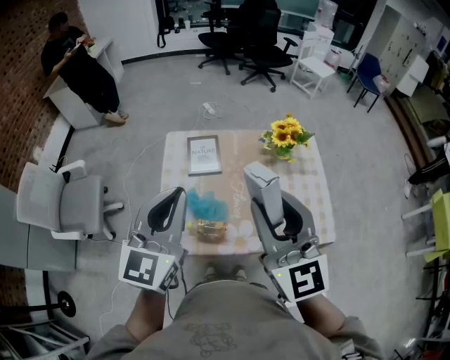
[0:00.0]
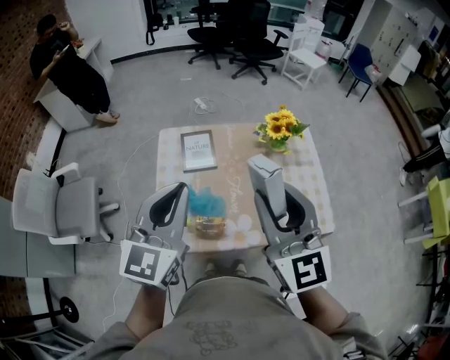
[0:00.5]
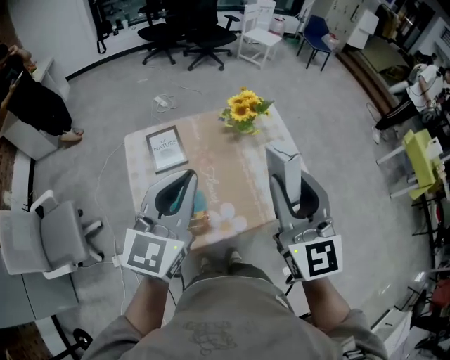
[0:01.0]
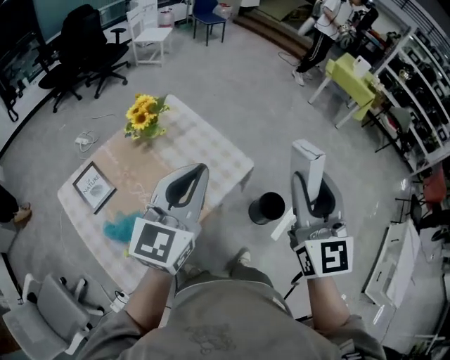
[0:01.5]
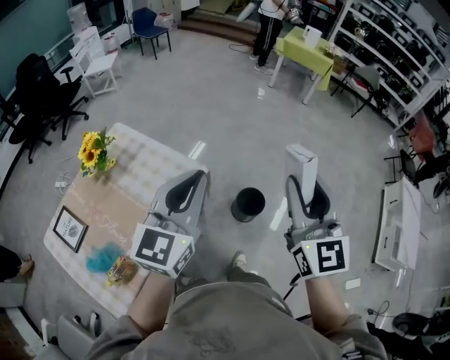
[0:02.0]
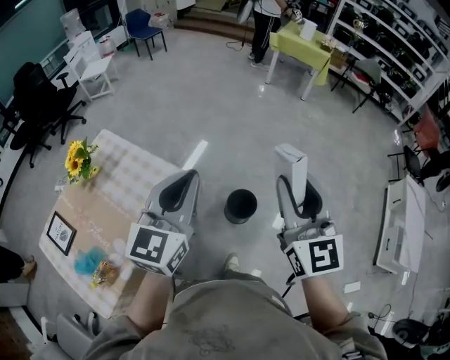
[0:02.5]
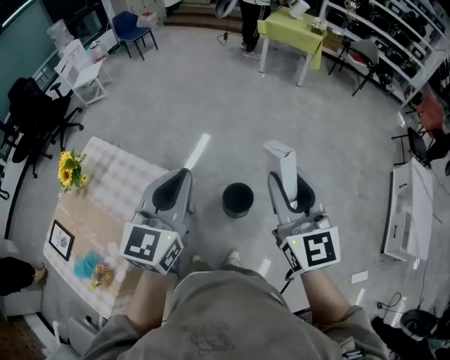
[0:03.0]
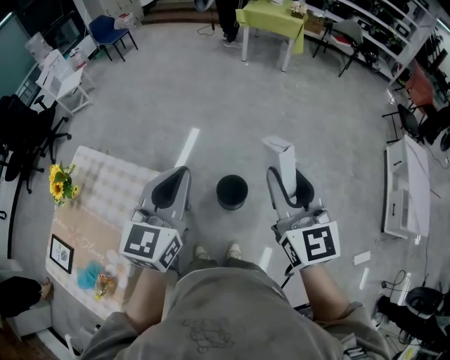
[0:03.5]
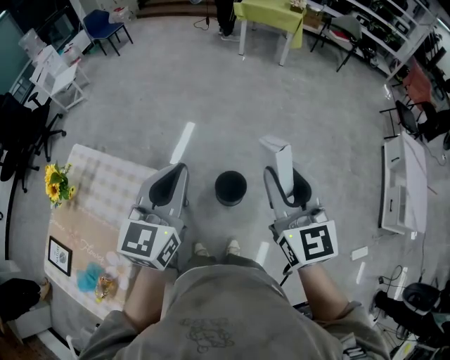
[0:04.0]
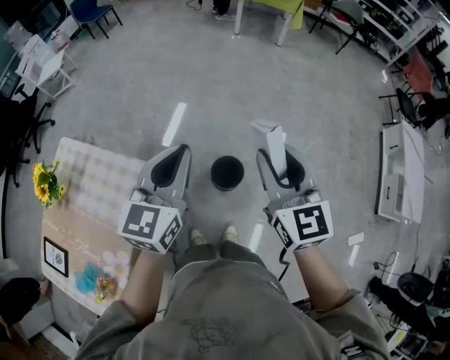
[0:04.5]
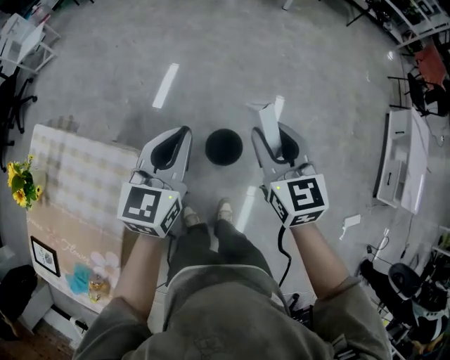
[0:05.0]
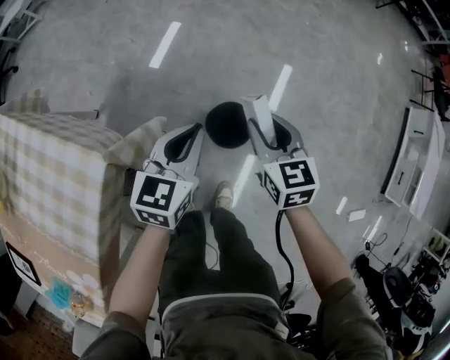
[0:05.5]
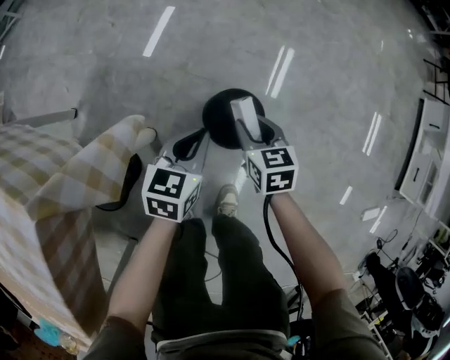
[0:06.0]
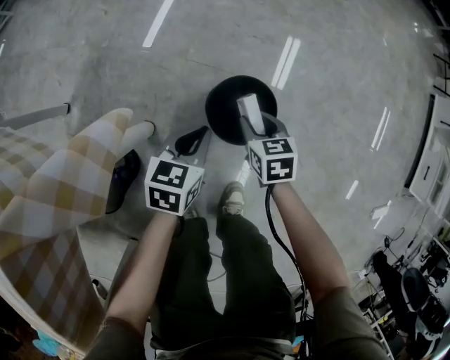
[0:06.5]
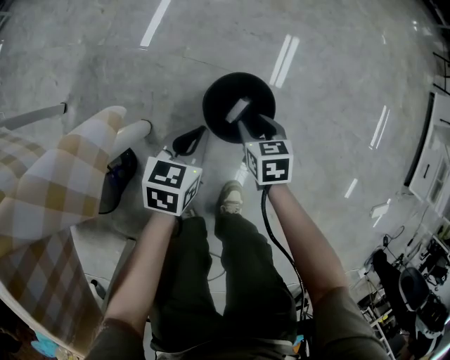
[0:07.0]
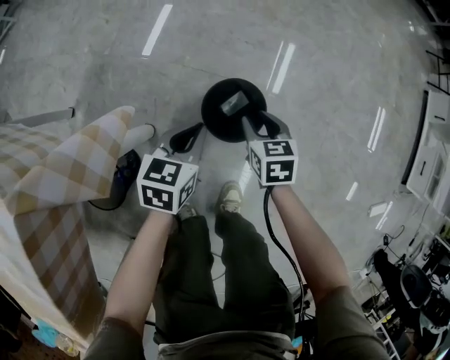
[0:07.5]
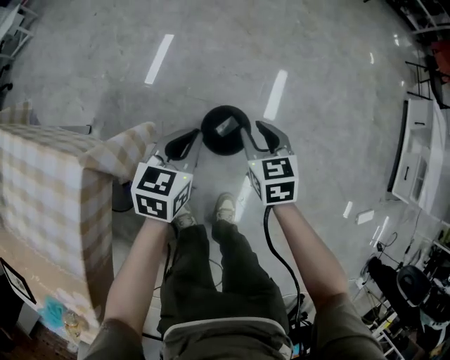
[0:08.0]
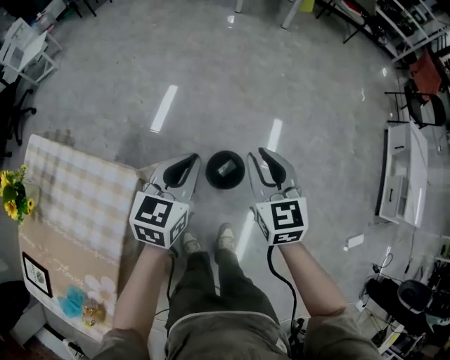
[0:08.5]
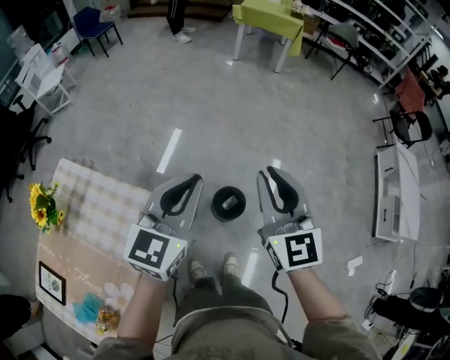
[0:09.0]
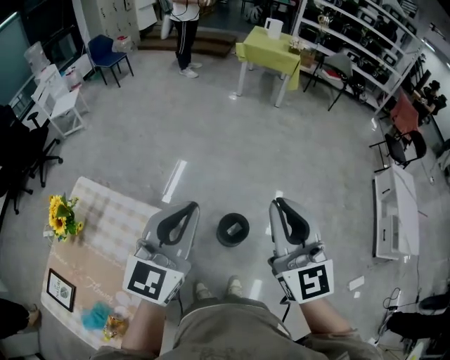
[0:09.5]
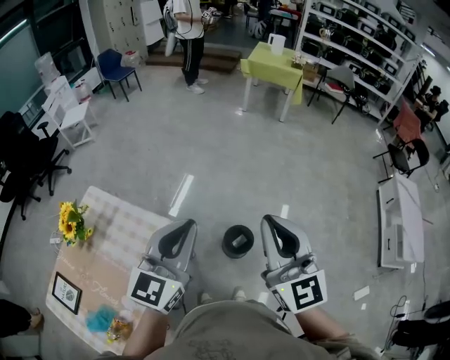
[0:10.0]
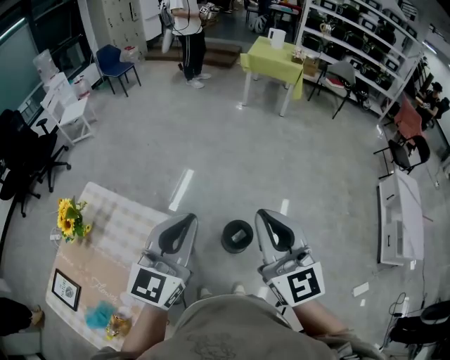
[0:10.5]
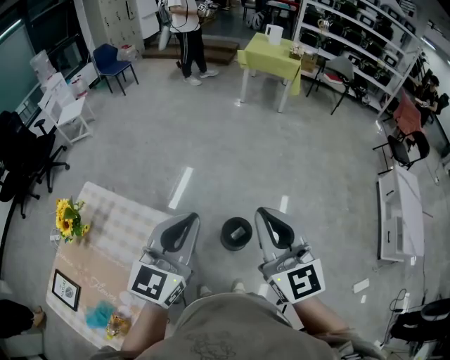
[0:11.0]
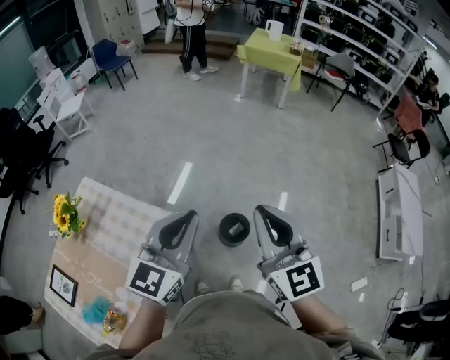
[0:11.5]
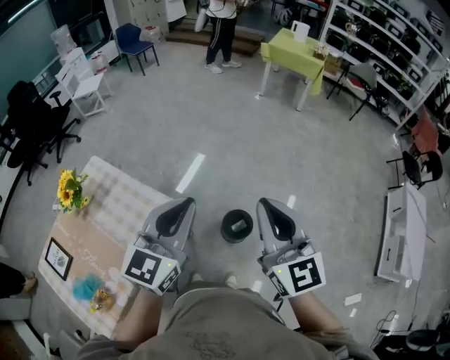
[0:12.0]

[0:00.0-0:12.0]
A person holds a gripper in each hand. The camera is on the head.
0:00.0 to 0:02.0: The two grippers travel together, roughly 50 cm. The right gripper swivels about 70 degrees; the left gripper rotates about 70 degrees.
0:02.0 to 0:04.0: The left gripper is displaced to the right and forward by some 20 cm. The right gripper goes approximately 20 cm to the right, forward and downward.
0:04.0 to 0:06.0: Both grippers move downward, roughly 70 cm. The left gripper angles its fingers downward, by approximately 30 degrees. The right gripper tilts its fingers some 40 degrees downward.
0:06.0 to 0:08.0: Both grippers move upward, some 15 cm.
0:08.0 to 0:10.0: Both grippers move upward, approximately 60 cm. The right gripper tilts its fingers about 50 degrees upward, and closes its fingers. The left gripper tips its fingers upward by approximately 40 degrees.
0:10.0 to 0:12.0: The right gripper changes place by some 5 cm.

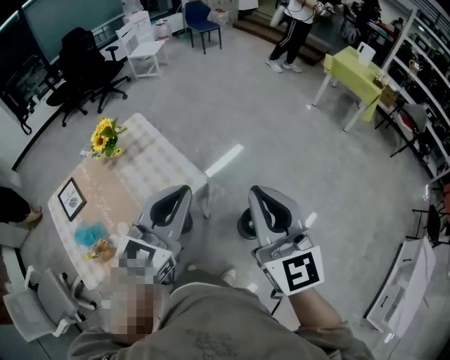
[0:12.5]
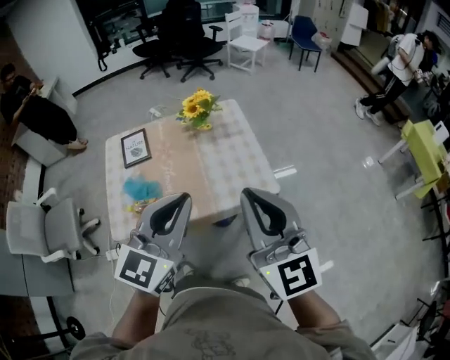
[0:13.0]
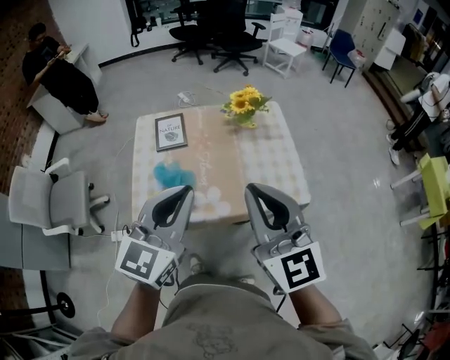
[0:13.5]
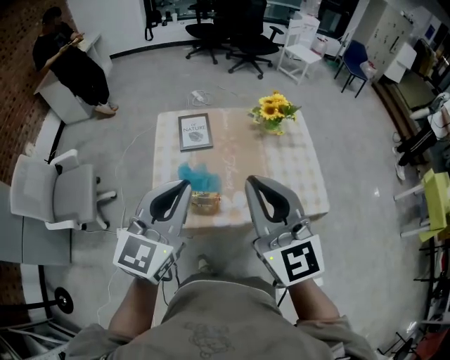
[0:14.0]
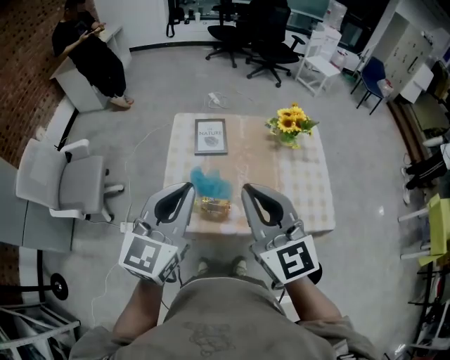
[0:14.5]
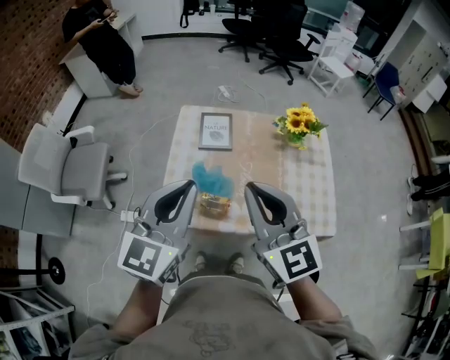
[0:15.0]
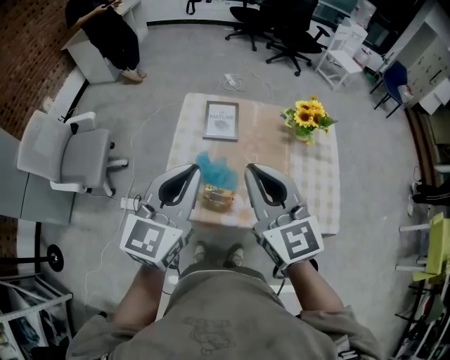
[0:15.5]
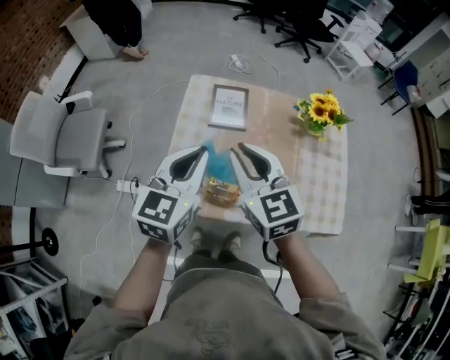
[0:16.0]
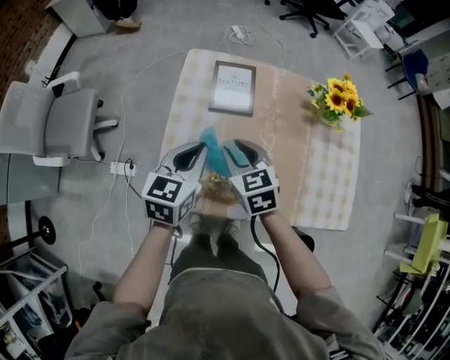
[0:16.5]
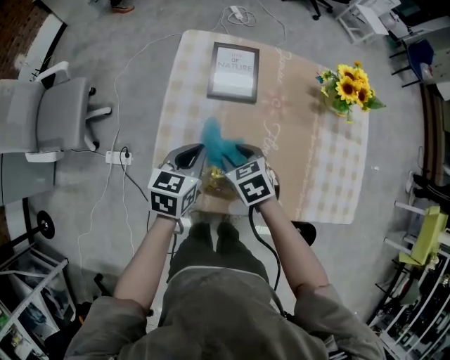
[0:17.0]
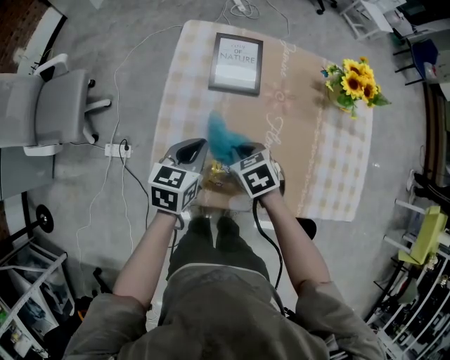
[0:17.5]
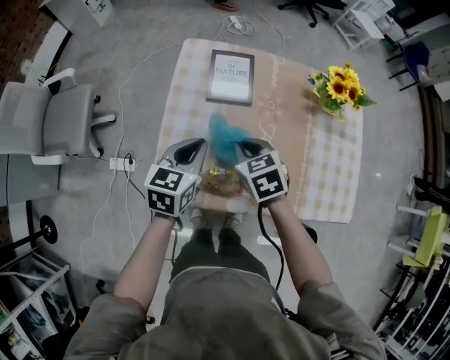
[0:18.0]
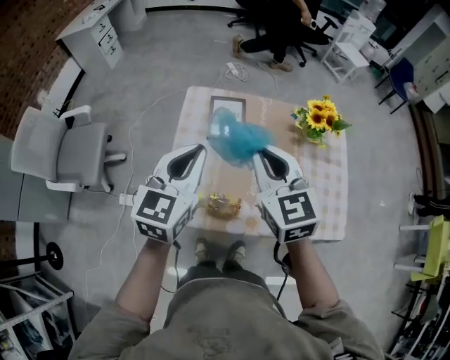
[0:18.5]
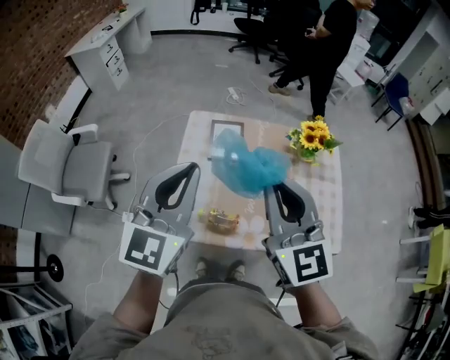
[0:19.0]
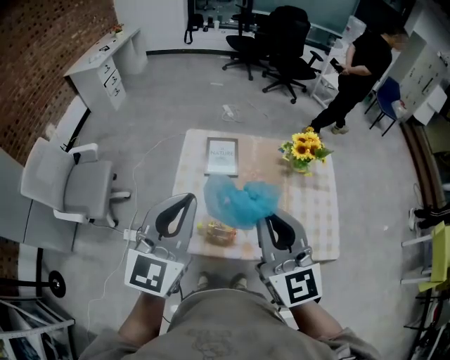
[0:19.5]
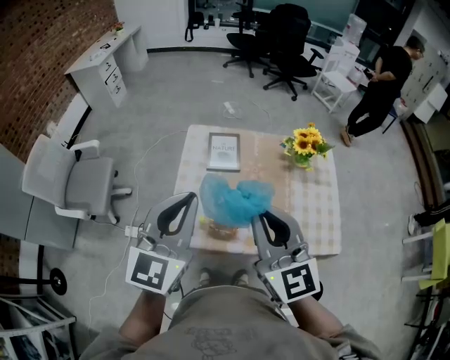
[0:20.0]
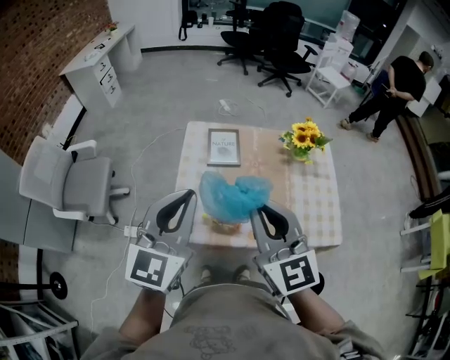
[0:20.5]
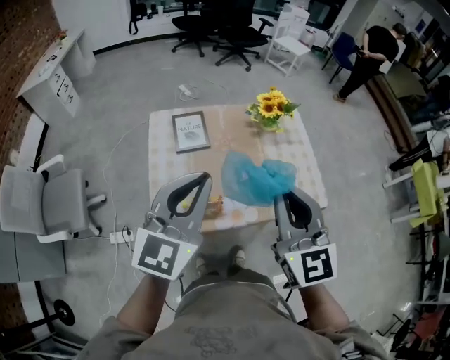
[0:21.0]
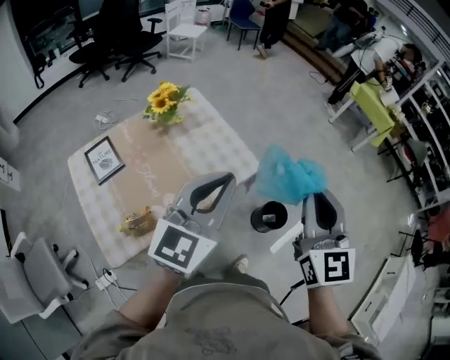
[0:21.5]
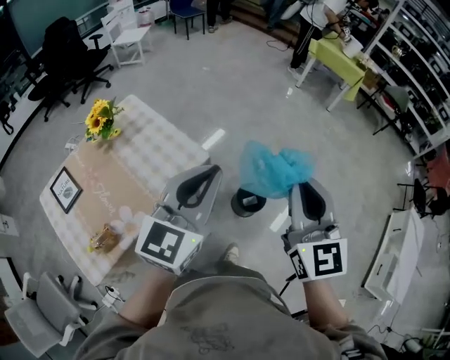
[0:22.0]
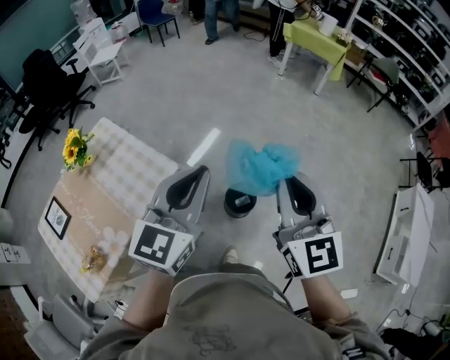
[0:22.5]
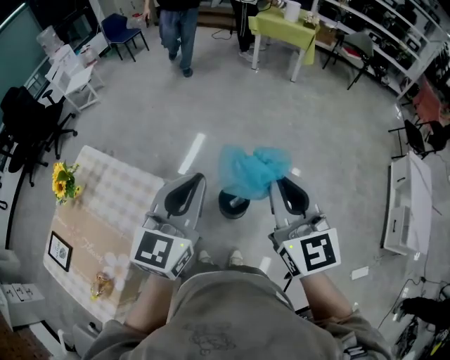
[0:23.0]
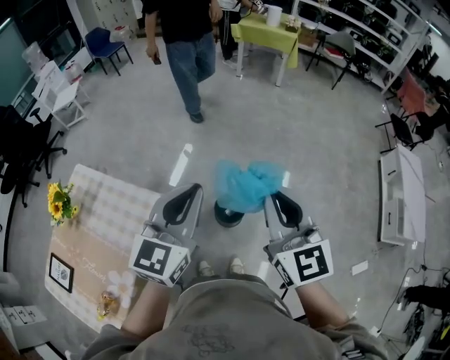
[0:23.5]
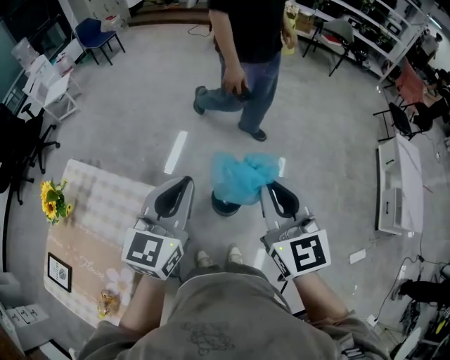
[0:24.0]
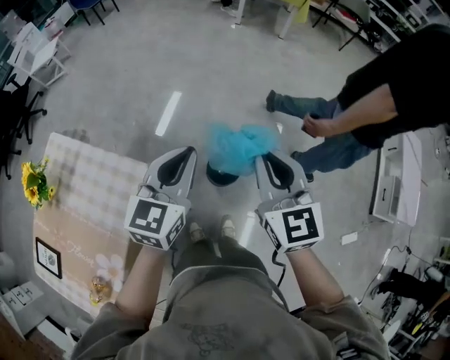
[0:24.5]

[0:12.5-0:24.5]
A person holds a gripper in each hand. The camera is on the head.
0:12.5 to 0:14.5: The two grippers travel together, approximately 60 cm. The right gripper swivels roughly 50 degrees. The left gripper turns by about 50 degrees.
0:14.5 to 0:16.5: The grippers both shift downward and forward by roughly 35 cm. The right gripper points its fingers about 40 degrees further downward, and opens. Meanwhile the left gripper swivels approximately 30 degrees.
0:16.5 to 0:18.5: The grippers both shift upward by approximately 20 cm. The right gripper rotates approximately 20 degrees, and closes.
0:18.5 to 0:20.5: The two grippers go about 15 cm backward and upward.
0:20.5 to 0:22.5: The two grippers travel together, approximately 70 cm. The right gripper rotates approximately 70 degrees, while the left gripper changes its angle by roughly 70 degrees.
0:22.5 to 0:24.5: The left gripper travels forward and downward by some 20 cm. Meanwhile the right gripper heads downward and forward, covering approximately 15 cm.

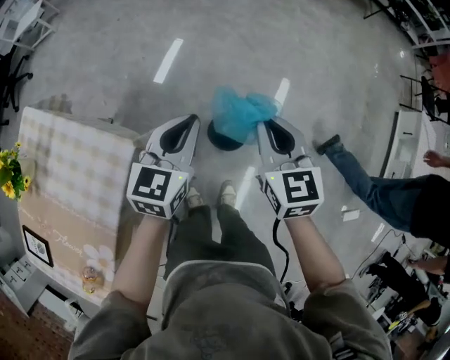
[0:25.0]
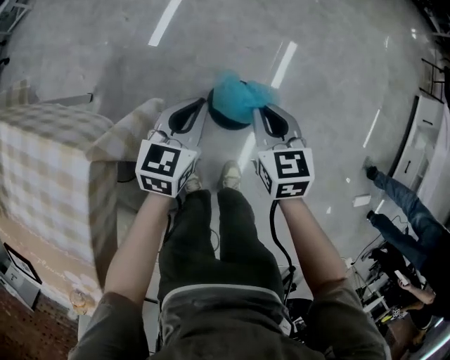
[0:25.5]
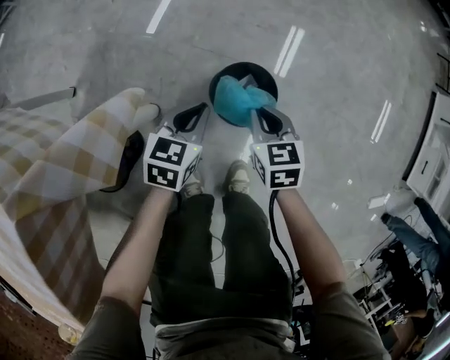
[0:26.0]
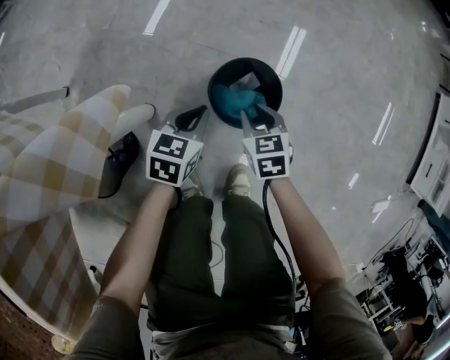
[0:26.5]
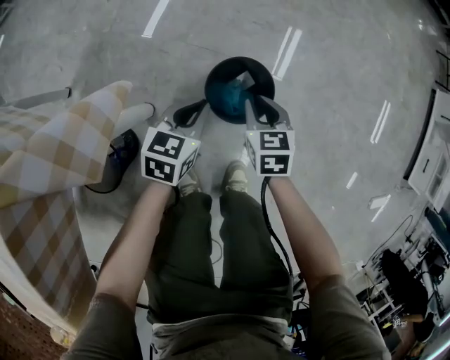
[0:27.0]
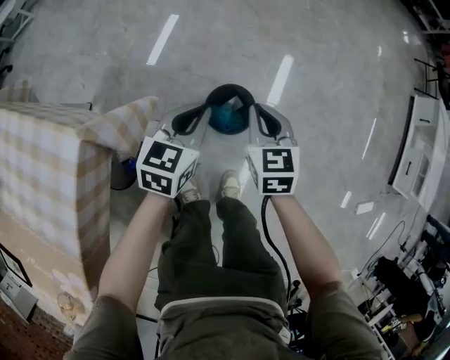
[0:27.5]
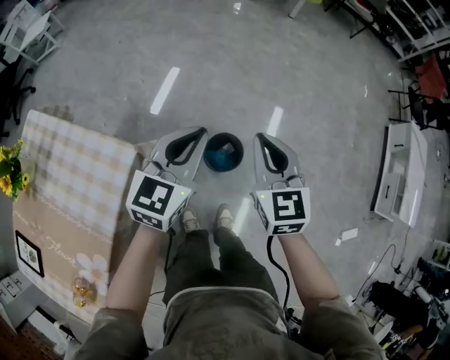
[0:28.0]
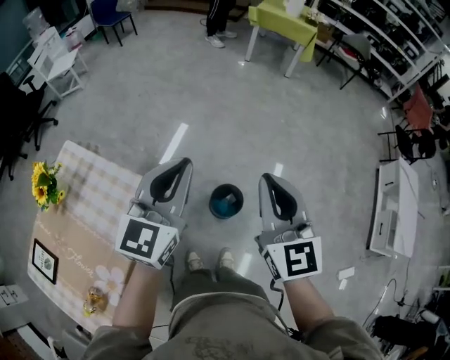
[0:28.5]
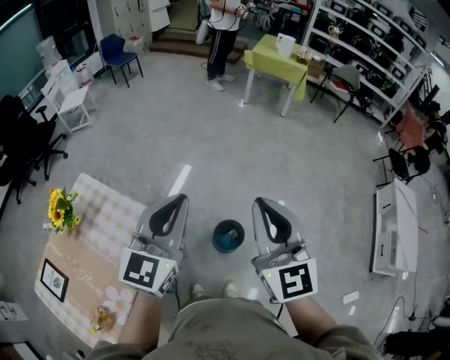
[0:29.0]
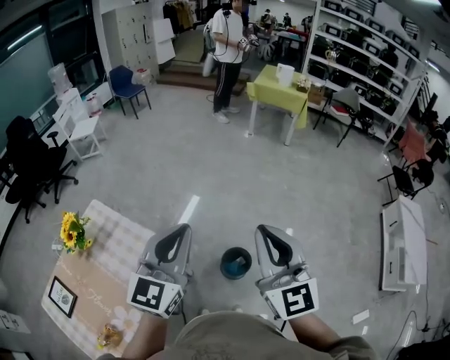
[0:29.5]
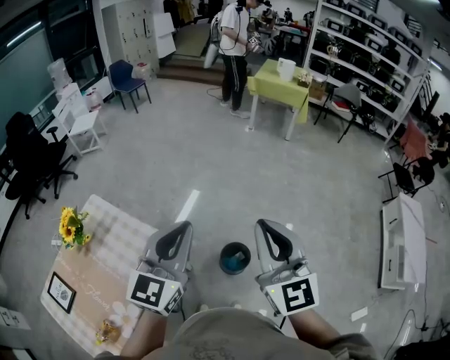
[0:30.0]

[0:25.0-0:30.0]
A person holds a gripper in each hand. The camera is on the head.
0:25.0 to 0:27.5: The two grippers go roughly 30 cm downward.
0:27.5 to 0:30.0: The two grippers go approximately 60 cm upward. The right gripper tips its fingers upward by roughly 40 degrees; the left gripper angles its fingers upward, by approximately 30 degrees.
